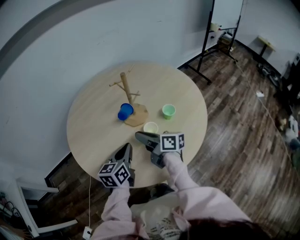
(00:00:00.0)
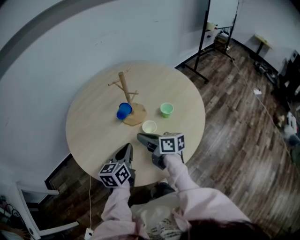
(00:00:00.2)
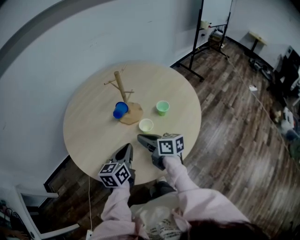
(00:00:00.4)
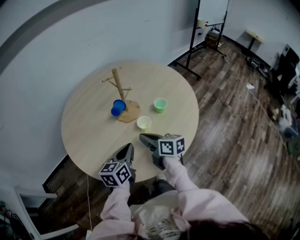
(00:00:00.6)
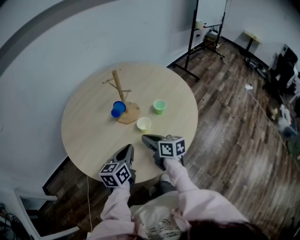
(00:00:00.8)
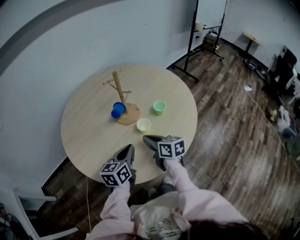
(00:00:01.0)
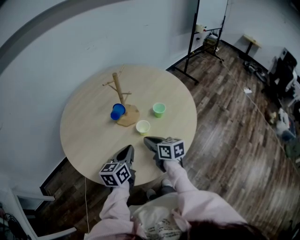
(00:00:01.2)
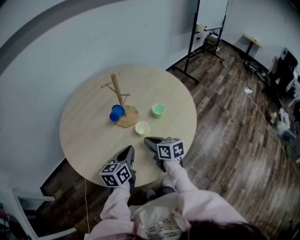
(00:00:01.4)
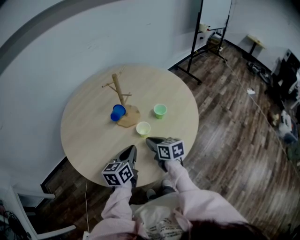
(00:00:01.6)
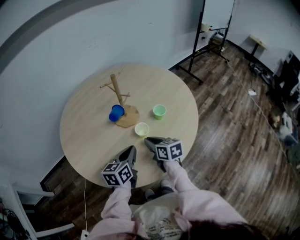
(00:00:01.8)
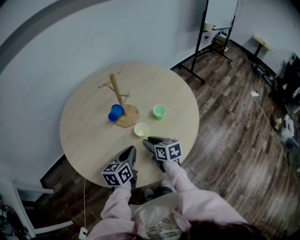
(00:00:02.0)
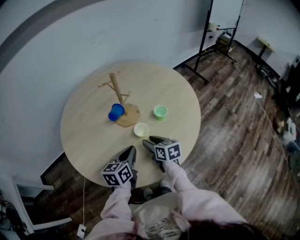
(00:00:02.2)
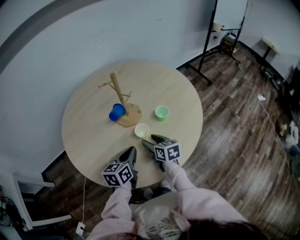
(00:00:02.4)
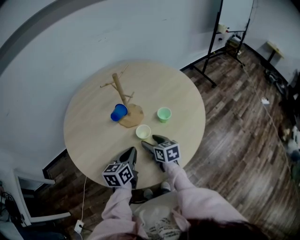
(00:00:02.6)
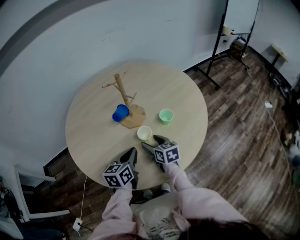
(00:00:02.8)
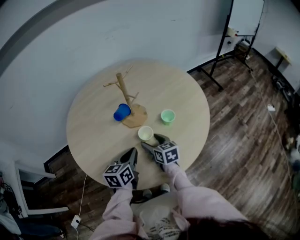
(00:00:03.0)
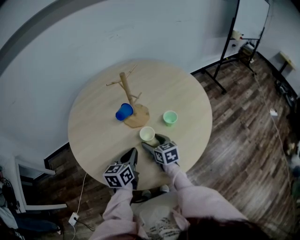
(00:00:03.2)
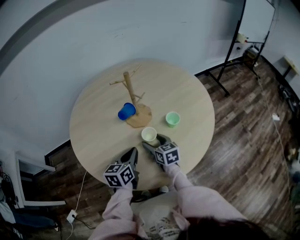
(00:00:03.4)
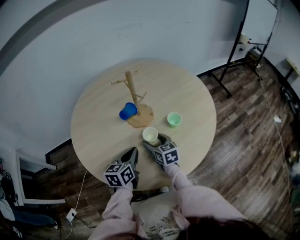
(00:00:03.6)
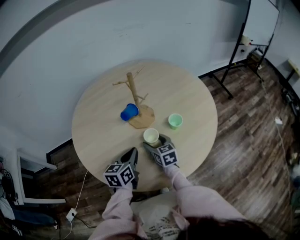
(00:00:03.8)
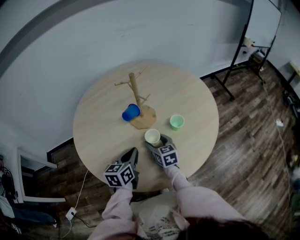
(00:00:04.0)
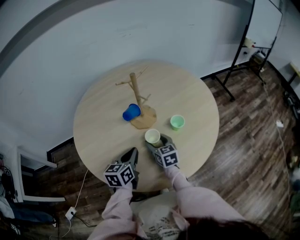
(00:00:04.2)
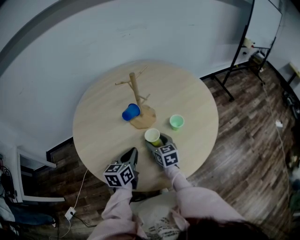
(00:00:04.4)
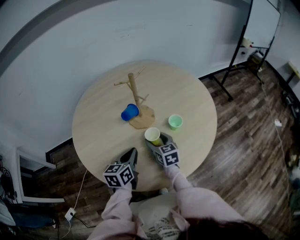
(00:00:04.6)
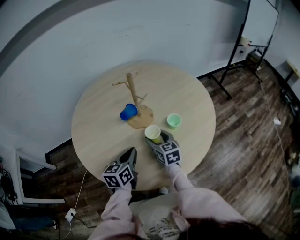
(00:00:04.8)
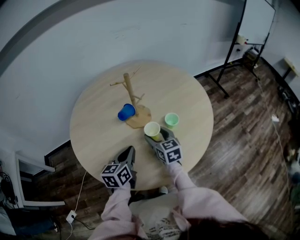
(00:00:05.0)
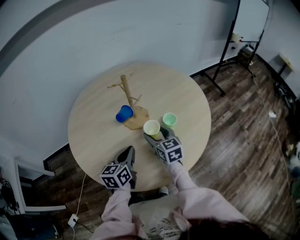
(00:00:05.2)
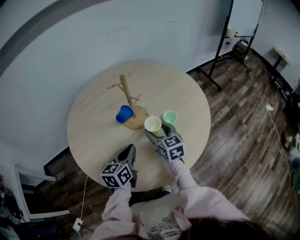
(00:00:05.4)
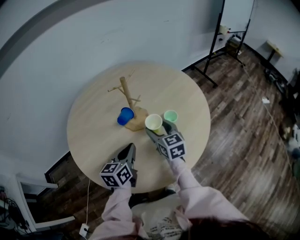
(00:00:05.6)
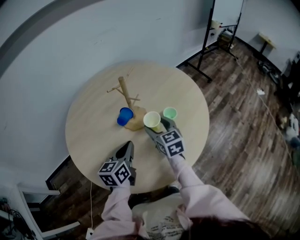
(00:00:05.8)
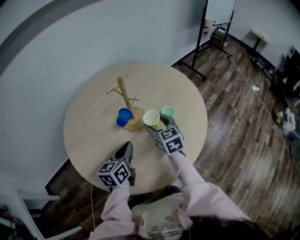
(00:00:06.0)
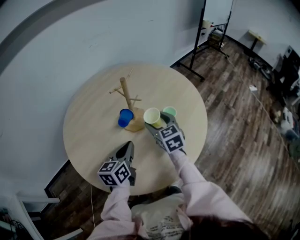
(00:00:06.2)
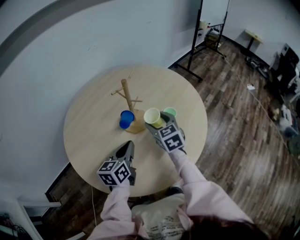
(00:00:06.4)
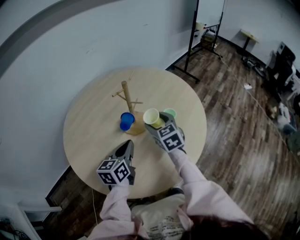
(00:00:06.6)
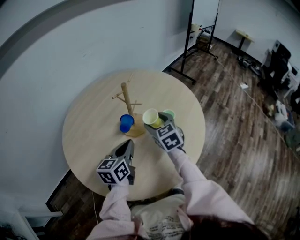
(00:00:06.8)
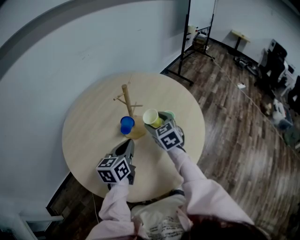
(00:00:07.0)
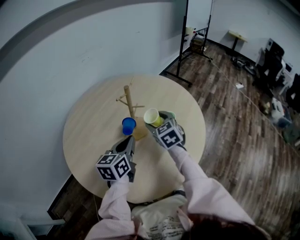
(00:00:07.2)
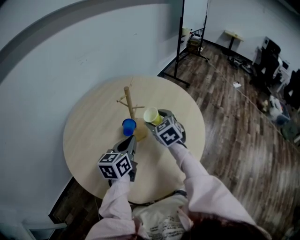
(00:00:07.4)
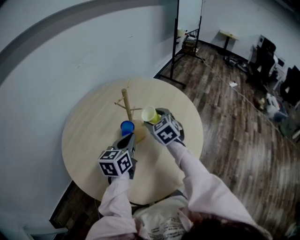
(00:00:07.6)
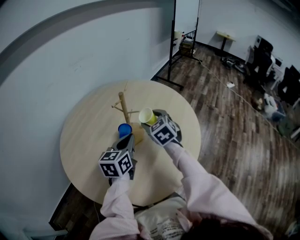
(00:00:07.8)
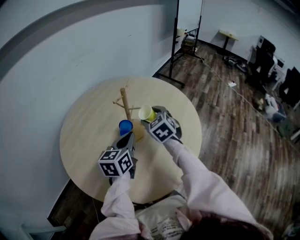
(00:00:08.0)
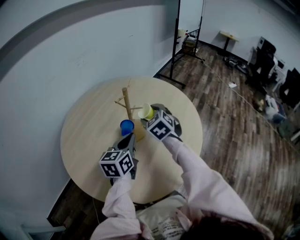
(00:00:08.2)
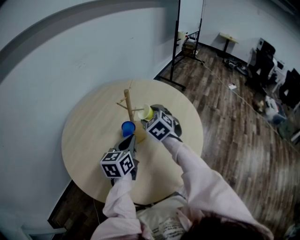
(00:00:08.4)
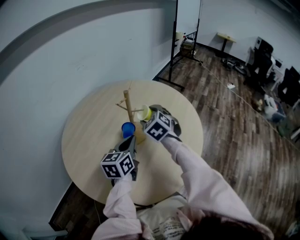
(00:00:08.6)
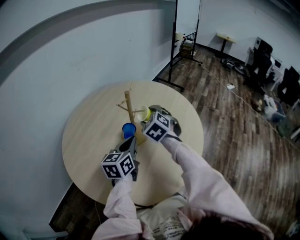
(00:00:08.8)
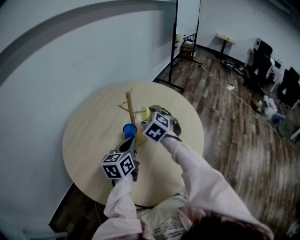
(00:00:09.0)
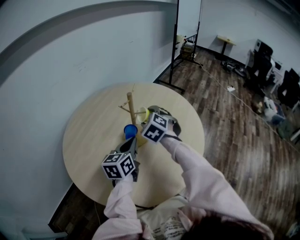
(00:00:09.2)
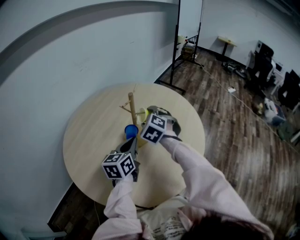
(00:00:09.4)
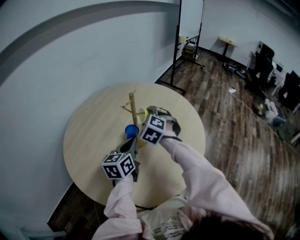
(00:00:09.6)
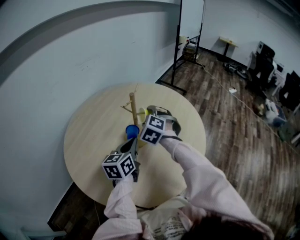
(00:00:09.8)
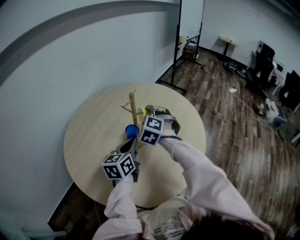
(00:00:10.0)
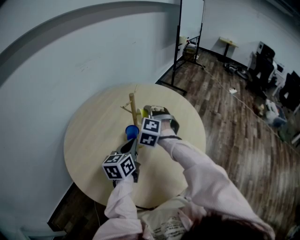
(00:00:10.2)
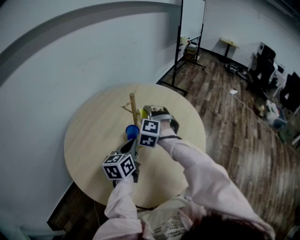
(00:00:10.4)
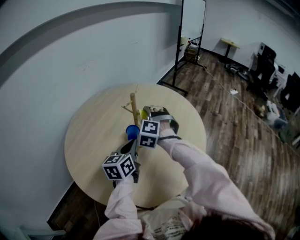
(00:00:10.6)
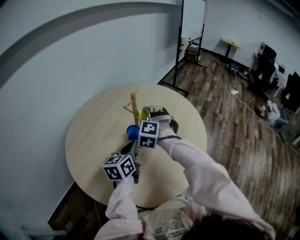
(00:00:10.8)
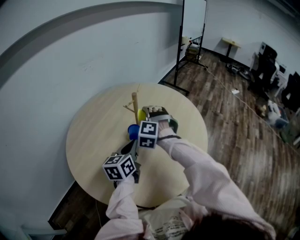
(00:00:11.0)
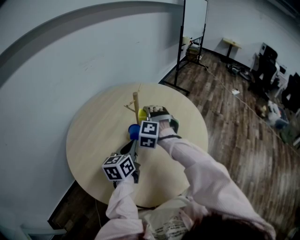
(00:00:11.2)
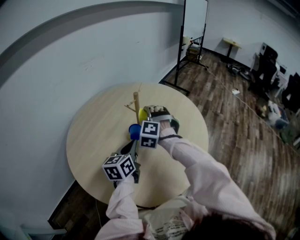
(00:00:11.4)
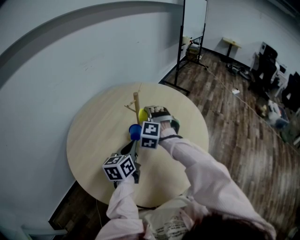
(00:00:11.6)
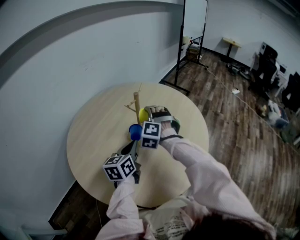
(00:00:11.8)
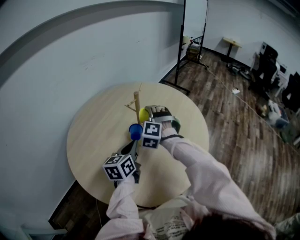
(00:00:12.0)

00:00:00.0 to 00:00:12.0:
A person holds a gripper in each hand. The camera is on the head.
00:00:00.0 to 00:00:01.6: The left gripper moves roughly 5 cm, while the right gripper heads downward and to the right, covering some 10 cm, and changes its angle by approximately 30 degrees.
00:00:01.6 to 00:00:03.0: The right gripper is displaced forward by some 5 cm, and opens.
00:00:03.0 to 00:00:04.4: The grippers move only a little.
00:00:04.4 to 00:00:06.0: The left gripper moves upward, about 5 cm. Meanwhile the right gripper shifts approximately 10 cm upward.
00:00:06.0 to 00:00:07.6: The left gripper heads upward and forward, covering about 10 cm. Meanwhile the right gripper moves roughly 5 cm, and changes its angle by approximately 20 degrees.
00:00:07.6 to 00:00:09.0: The grippers stay close to where they were, moving slightly.
00:00:09.0 to 00:00:10.4: The right gripper turns by about 30 degrees.
00:00:10.4 to 00:00:12.0: The grippers stay close to where they were, moving slightly.

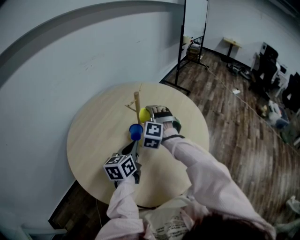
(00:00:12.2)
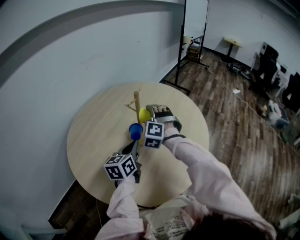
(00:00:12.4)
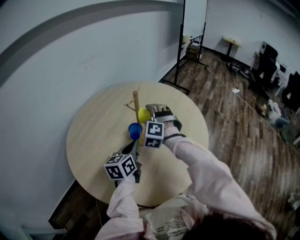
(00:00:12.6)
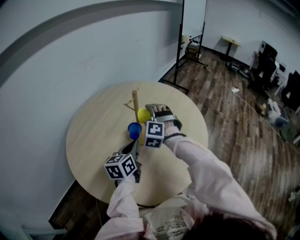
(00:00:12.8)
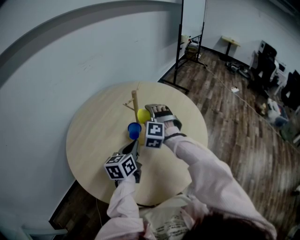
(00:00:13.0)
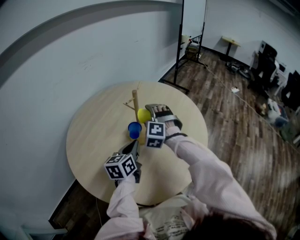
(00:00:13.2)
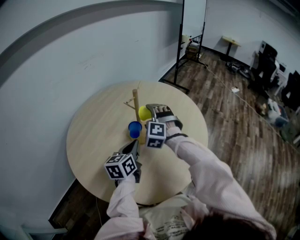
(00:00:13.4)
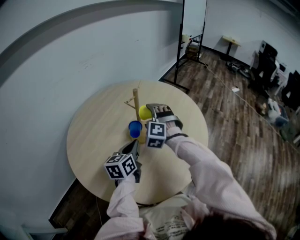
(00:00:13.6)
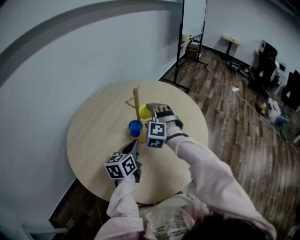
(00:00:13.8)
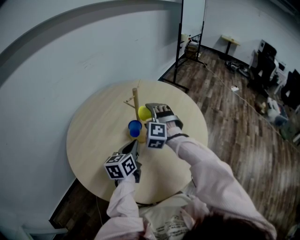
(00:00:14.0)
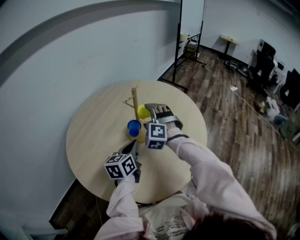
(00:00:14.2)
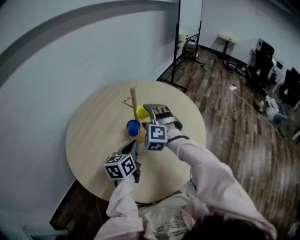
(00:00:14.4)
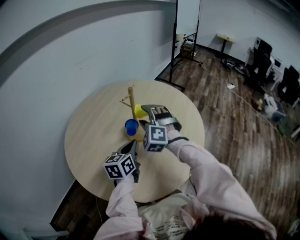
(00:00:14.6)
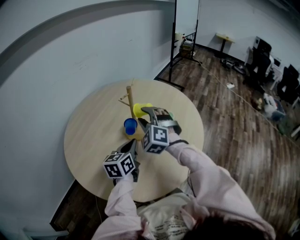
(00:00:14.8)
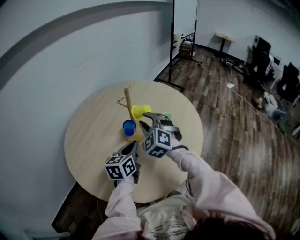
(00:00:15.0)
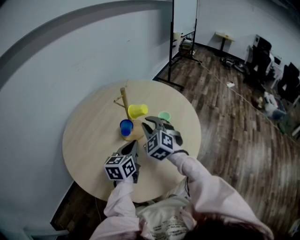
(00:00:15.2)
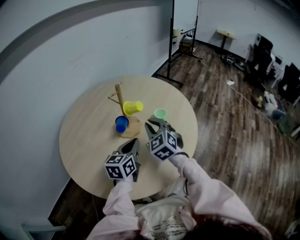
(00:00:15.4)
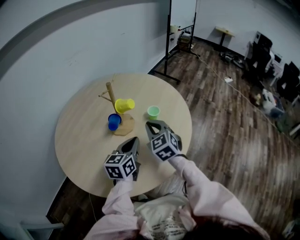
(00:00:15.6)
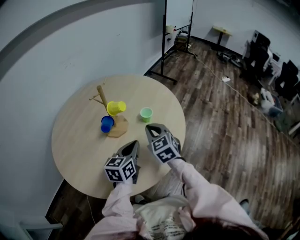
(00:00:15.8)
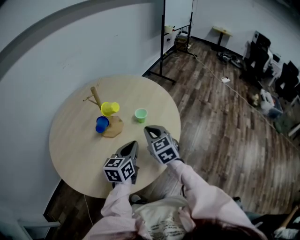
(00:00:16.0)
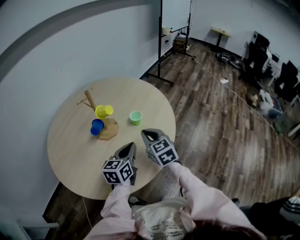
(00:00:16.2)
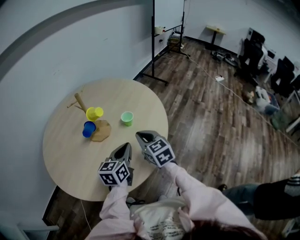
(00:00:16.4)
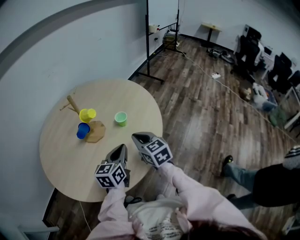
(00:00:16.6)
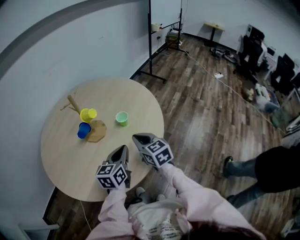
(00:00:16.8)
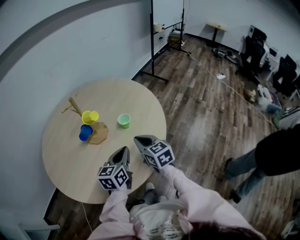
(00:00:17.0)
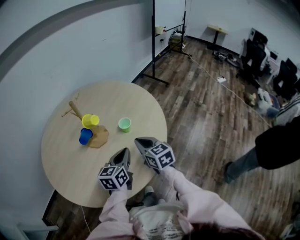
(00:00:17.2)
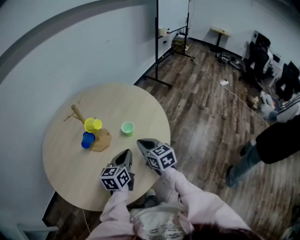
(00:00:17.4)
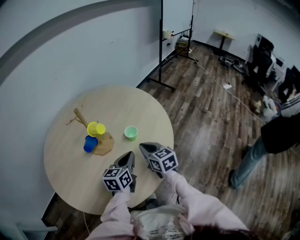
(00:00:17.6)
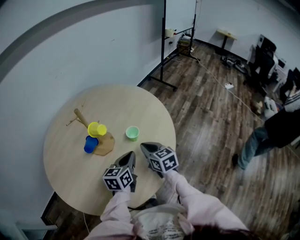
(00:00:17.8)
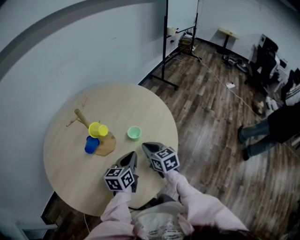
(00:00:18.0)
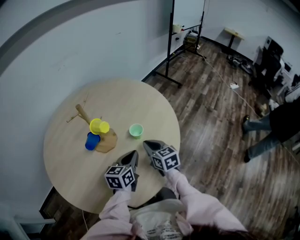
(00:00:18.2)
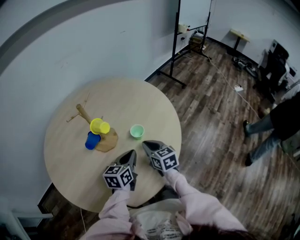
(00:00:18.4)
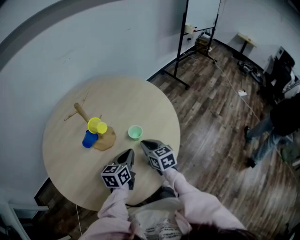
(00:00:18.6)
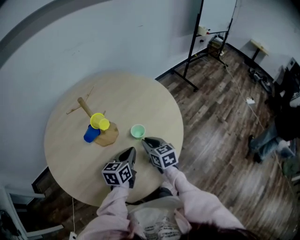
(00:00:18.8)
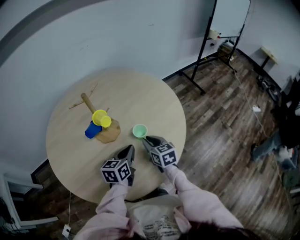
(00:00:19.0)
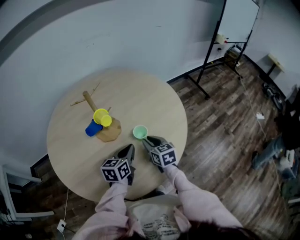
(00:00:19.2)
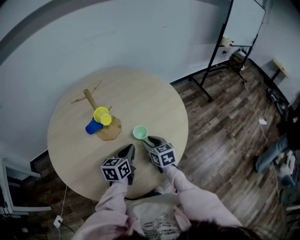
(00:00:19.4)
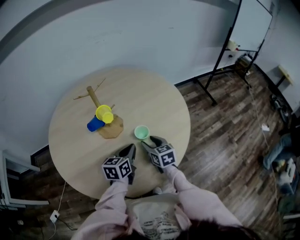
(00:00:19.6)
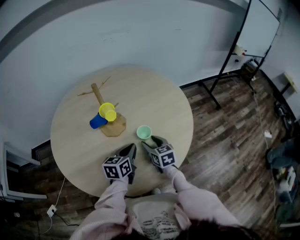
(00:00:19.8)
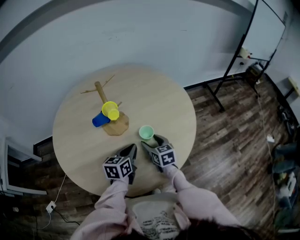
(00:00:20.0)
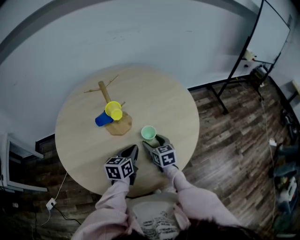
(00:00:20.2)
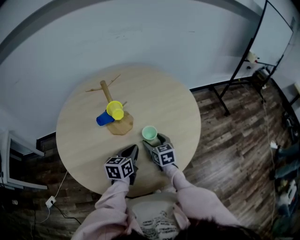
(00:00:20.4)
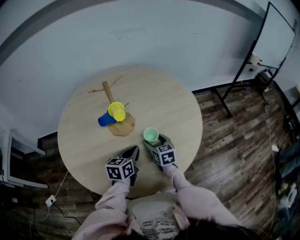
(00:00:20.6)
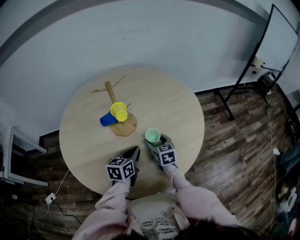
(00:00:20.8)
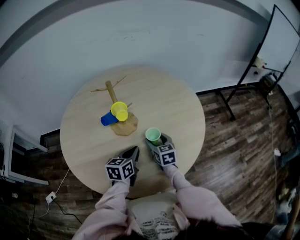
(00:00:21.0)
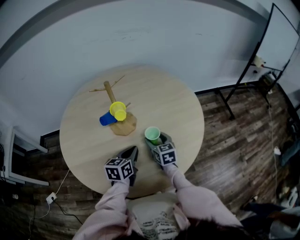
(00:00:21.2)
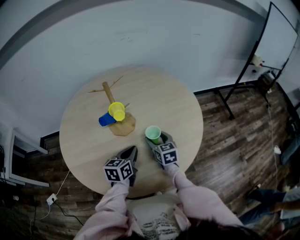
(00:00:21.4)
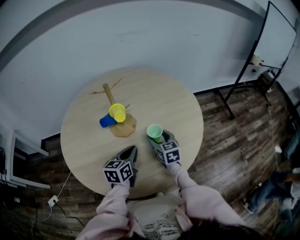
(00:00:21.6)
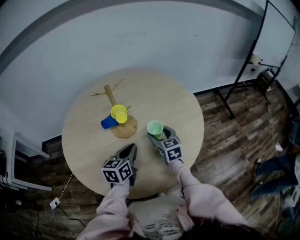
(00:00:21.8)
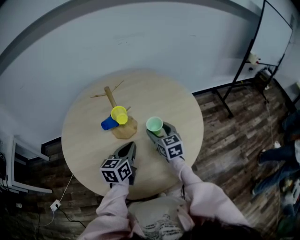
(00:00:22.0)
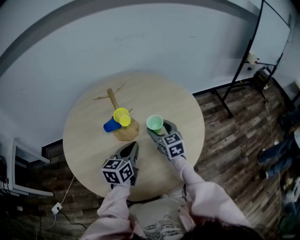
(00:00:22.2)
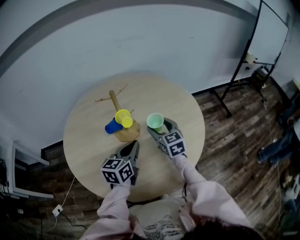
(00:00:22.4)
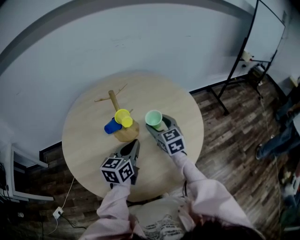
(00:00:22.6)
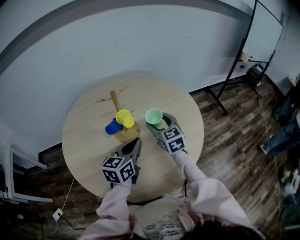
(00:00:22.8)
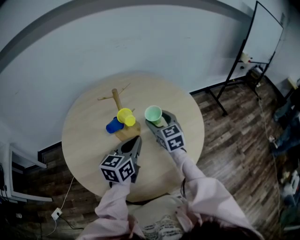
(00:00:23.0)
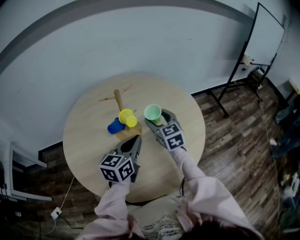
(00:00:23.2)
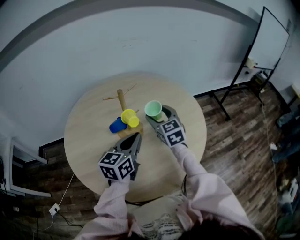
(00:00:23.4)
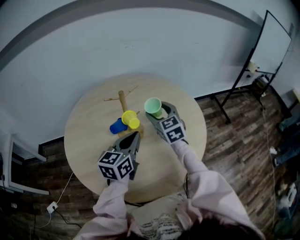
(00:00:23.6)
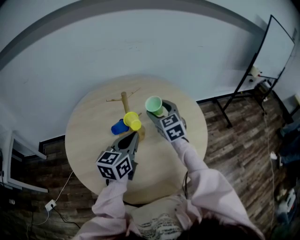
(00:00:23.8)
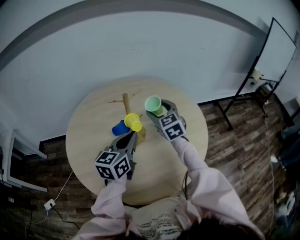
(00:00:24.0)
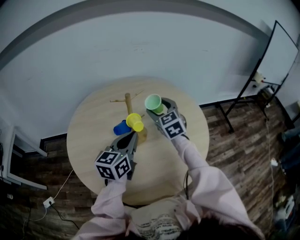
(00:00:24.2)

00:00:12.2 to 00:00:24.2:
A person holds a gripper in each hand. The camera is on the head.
00:00:12.2 to 00:00:13.8: The grippers make only small movements.
00:00:13.8 to 00:00:15.2: The right gripper shifts some 5 cm backward, rotates roughly 30 degrees, and closes its fingers.
00:00:15.2 to 00:00:16.6: The grippers both shift to the right by some 20 cm. The right gripper twists roughly 40 degrees clockwise, seen from behind.
00:00:16.6 to 00:00:18.2: Both grippers travel together forward and downward, roughly 10 cm.
00:00:18.2 to 00:00:19.8: The right gripper changes place by approximately 10 cm, rotates about 30 degrees, and opens up. The left gripper moves about 5 cm, and changes its angle by about 30 degrees.
00:00:19.8 to 00:00:21.2: There are only small adjustments of the grippers.
00:00:21.2 to 00:00:22.6: Both grippers move upward, roughly 10 cm.
00:00:22.6 to 00:00:24.2: The left gripper moves upward, some 5 cm. The right gripper moves upward, forward and to the left, roughly 10 cm.
